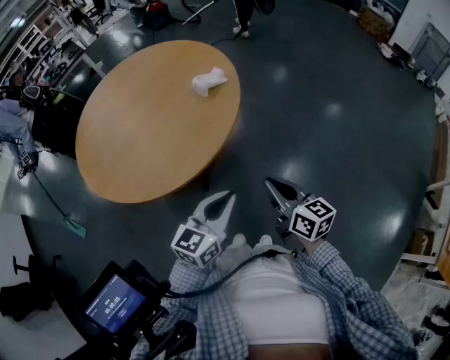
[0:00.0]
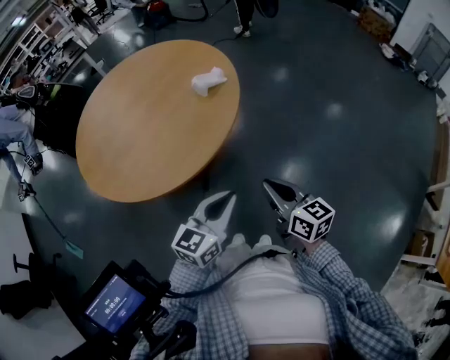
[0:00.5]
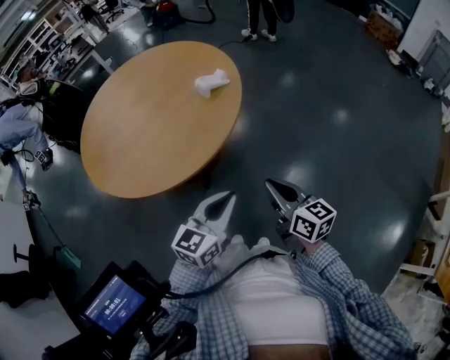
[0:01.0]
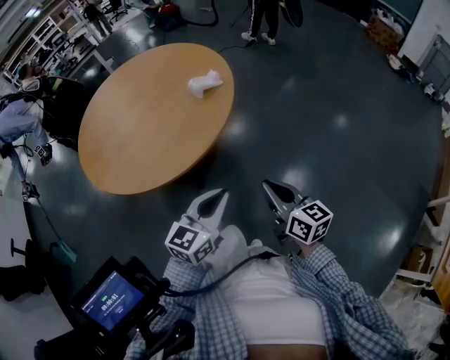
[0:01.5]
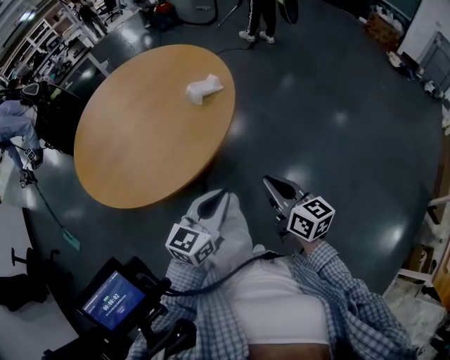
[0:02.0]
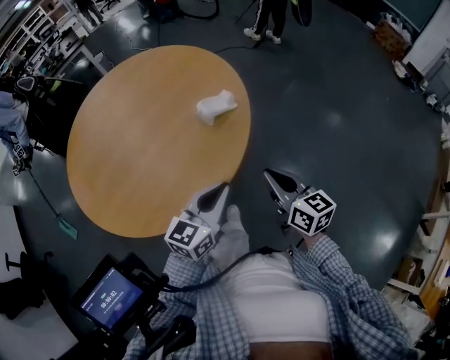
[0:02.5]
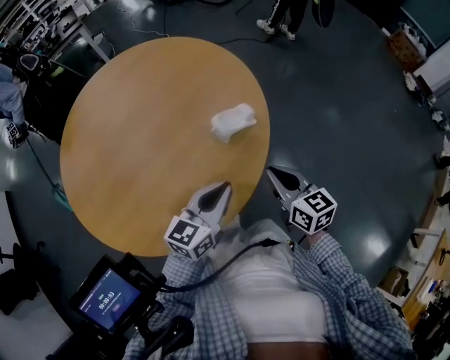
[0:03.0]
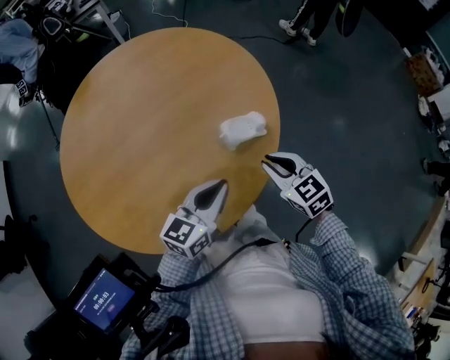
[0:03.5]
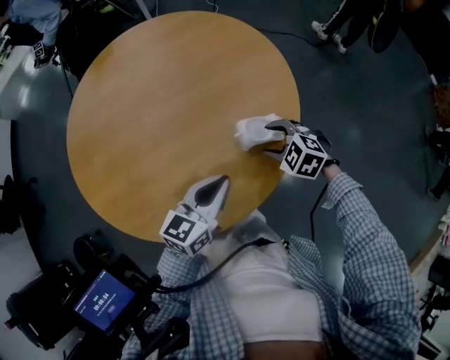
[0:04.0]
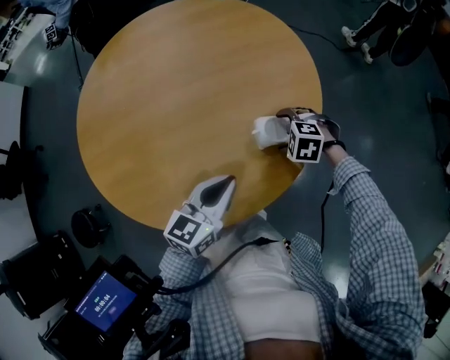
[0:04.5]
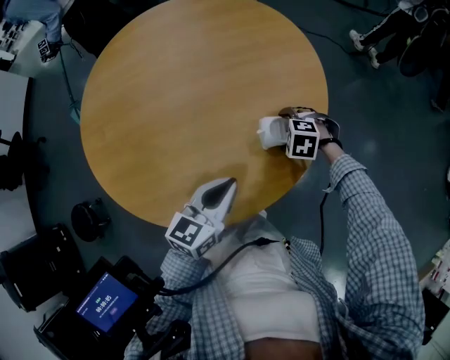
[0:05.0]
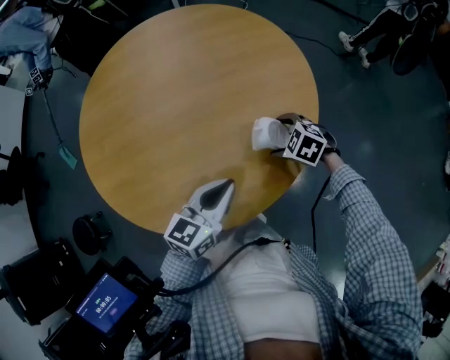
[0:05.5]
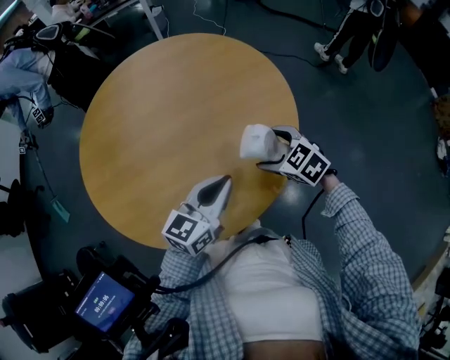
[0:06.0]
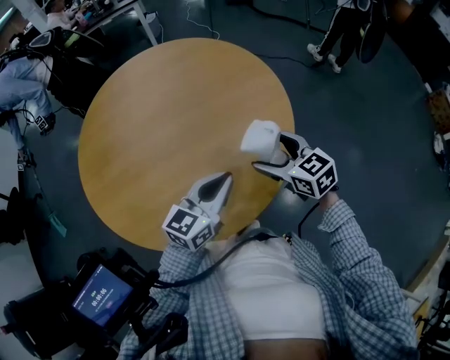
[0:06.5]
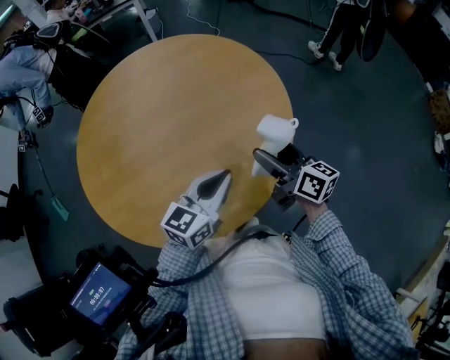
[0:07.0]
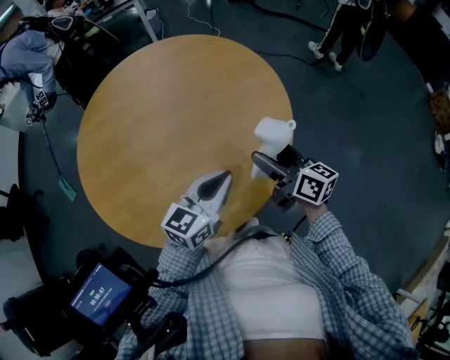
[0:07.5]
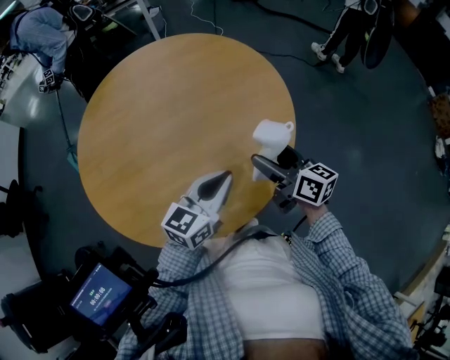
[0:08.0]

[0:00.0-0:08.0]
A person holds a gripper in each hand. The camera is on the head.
0:00.0 to 0:02.0: The two grippers go approximately 5 cm forward.
0:02.0 to 0:04.0: The left gripper ends up roughly 30 cm from where it was, and turns by roughly 20 degrees. The right gripper shifts by roughly 40 cm, tips its fingers downward by some 50 degrees, and opens up.
0:04.0 to 0:06.0: The right gripper moves about 10 cm downward and comes back, and opens up.
0:06.0 to 0:08.0: The right gripper travels upward by about 10 cm, and angles its fingers upward, by roughly 40 degrees.

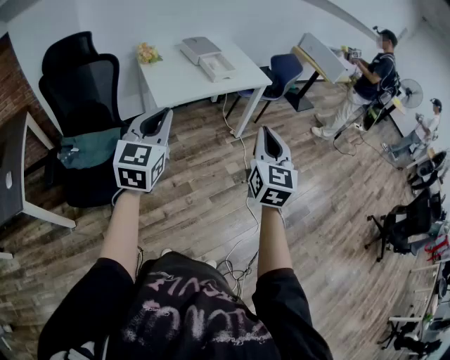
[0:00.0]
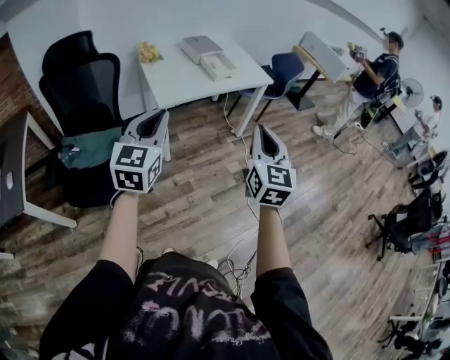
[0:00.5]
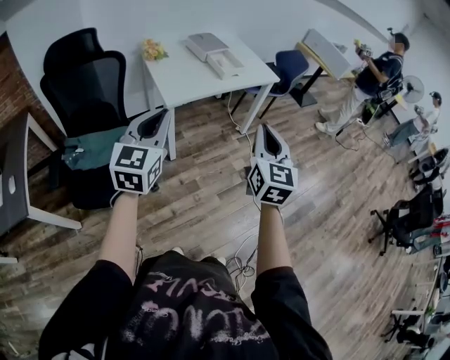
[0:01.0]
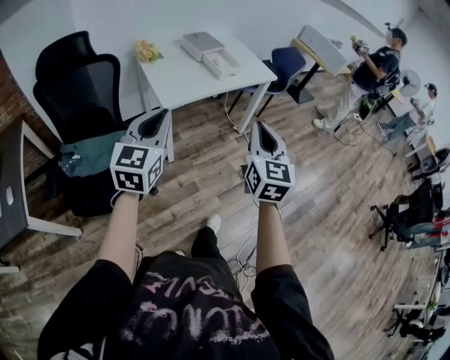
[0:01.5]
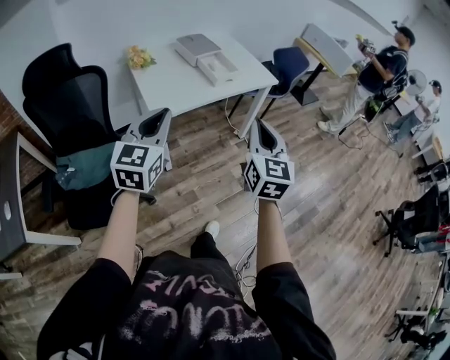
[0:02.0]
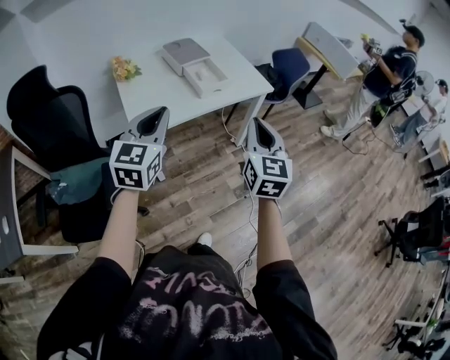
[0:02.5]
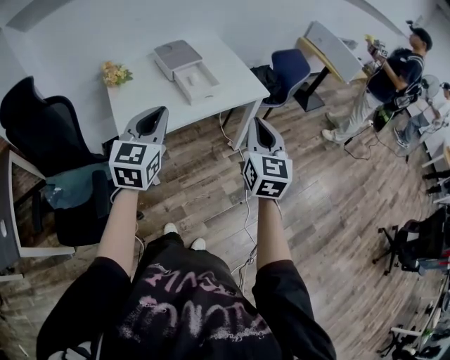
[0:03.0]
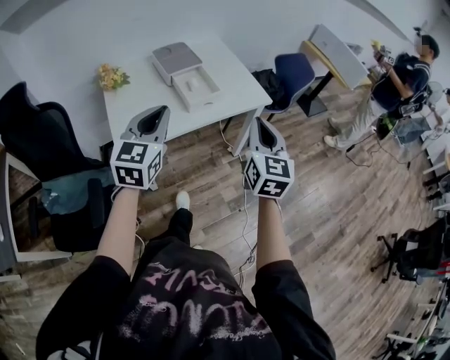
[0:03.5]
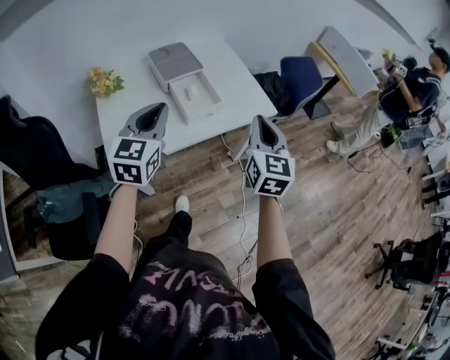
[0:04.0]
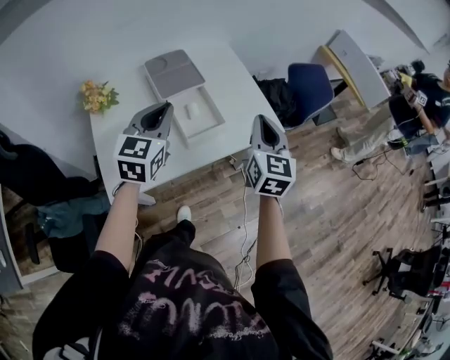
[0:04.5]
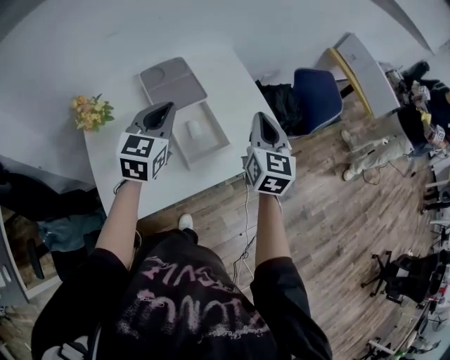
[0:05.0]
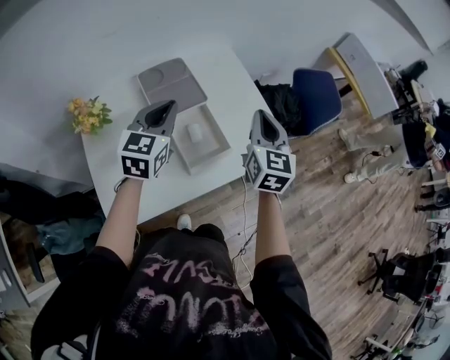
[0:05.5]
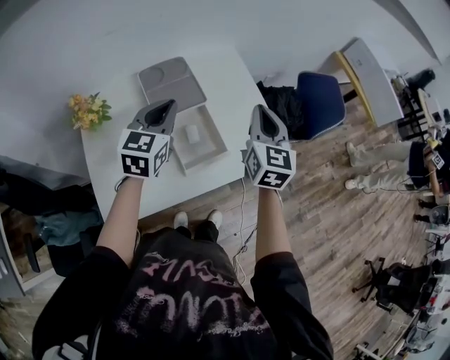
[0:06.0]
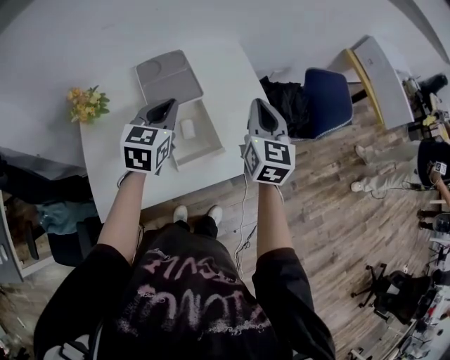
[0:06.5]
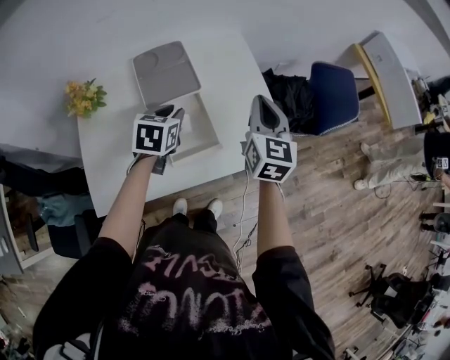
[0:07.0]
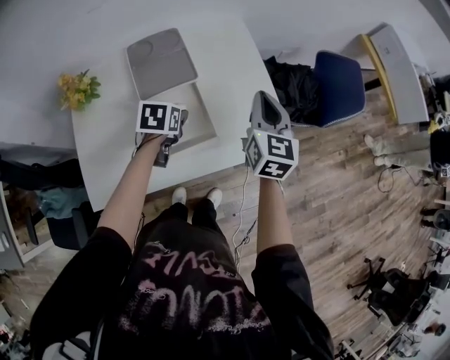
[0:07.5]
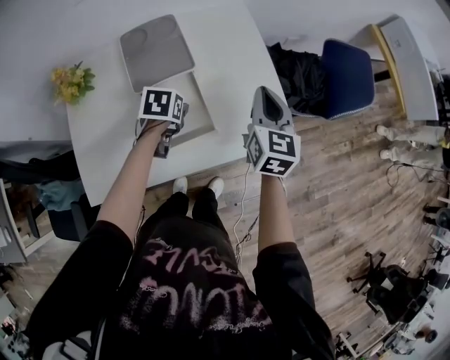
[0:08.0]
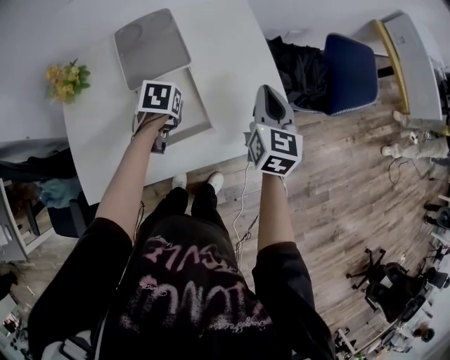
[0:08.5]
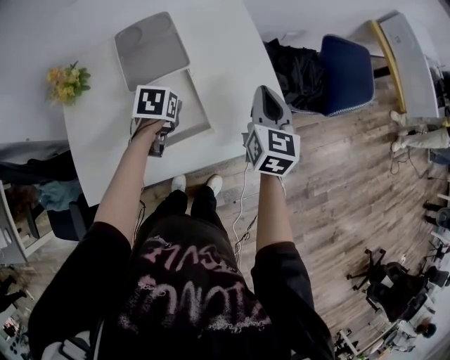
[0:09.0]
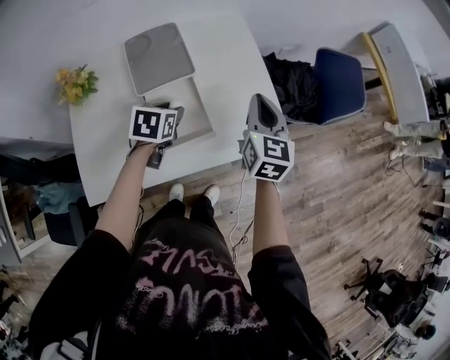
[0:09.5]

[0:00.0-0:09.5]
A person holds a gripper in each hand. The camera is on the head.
0:00.0 to 0:02.0: The grippers both shift forward by some 15 cm.
0:02.0 to 0:04.0: Both grippers move forward, some 35 cm.
0:04.0 to 0:05.5: The grippers both shift forward by about 25 cm.
0:05.5 to 0:07.5: The left gripper shifts some 20 cm downward, tips its fingers downward by some 40 degrees, and opens up. Meanwhile the right gripper is displaced forward and downward by roughly 10 cm.

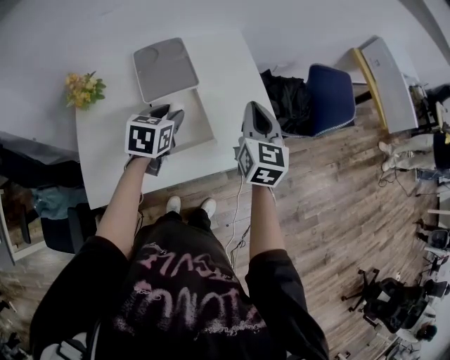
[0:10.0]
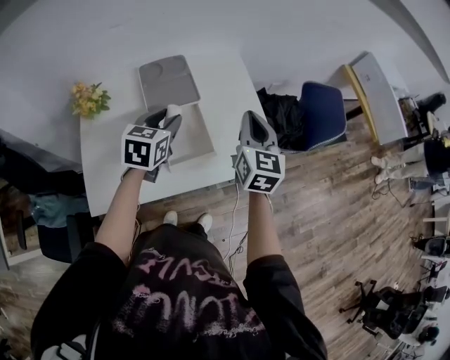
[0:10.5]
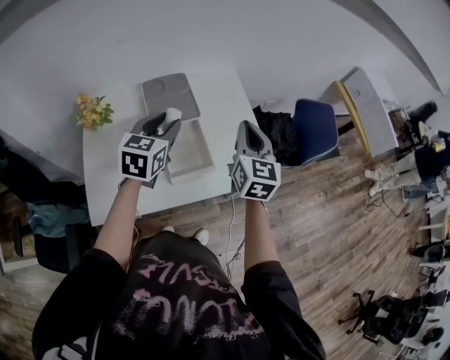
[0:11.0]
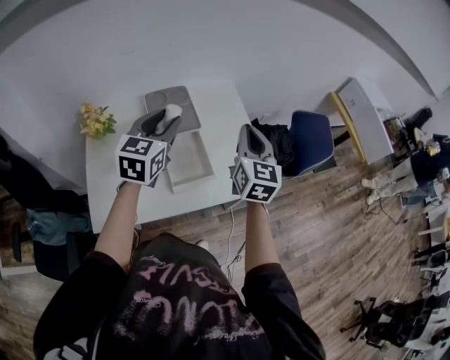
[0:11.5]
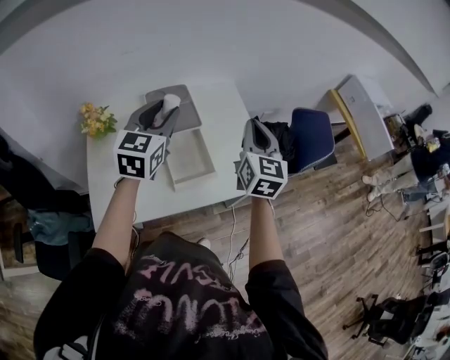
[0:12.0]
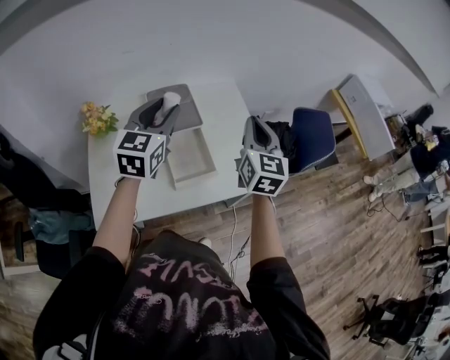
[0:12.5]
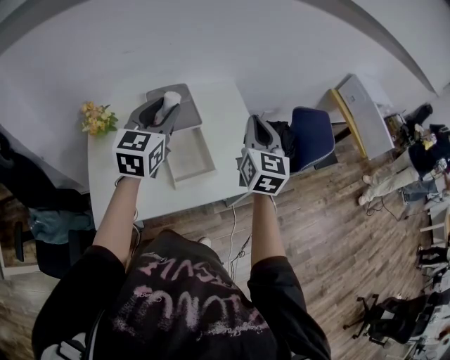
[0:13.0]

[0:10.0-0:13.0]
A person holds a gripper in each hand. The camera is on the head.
0:10.0 to 0:11.5: The left gripper goes approximately 20 cm upward, and turns by roughly 30 degrees; the right gripper shifts roughly 10 cm upward.
0:11.5 to 0:13.0: There are only small adjustments of the grippers.

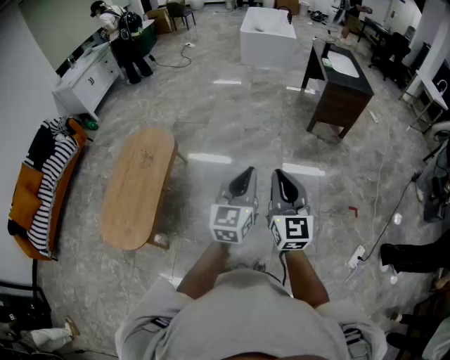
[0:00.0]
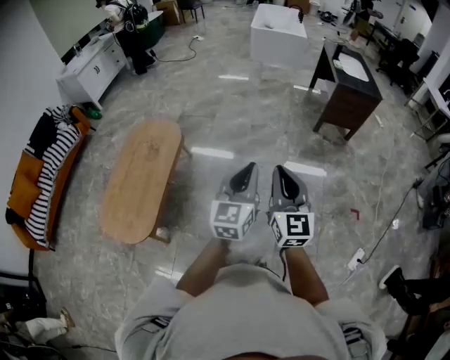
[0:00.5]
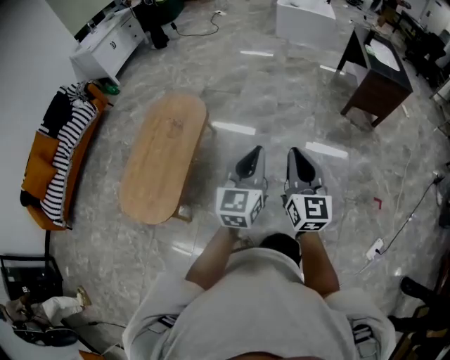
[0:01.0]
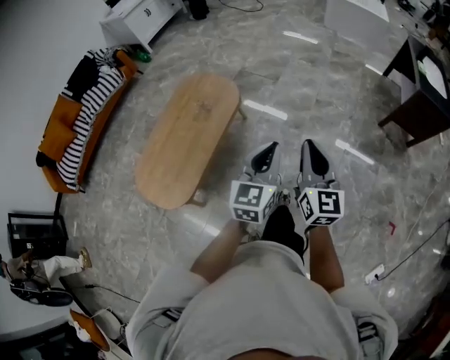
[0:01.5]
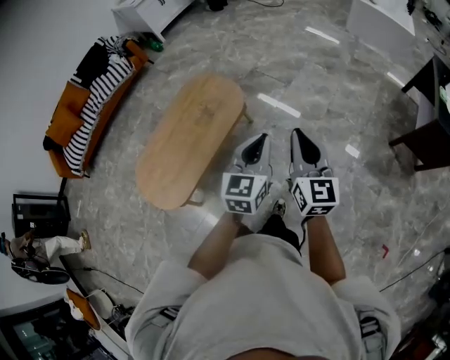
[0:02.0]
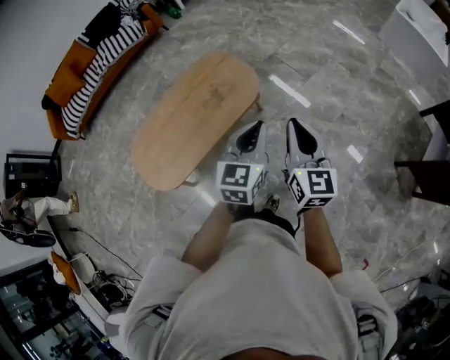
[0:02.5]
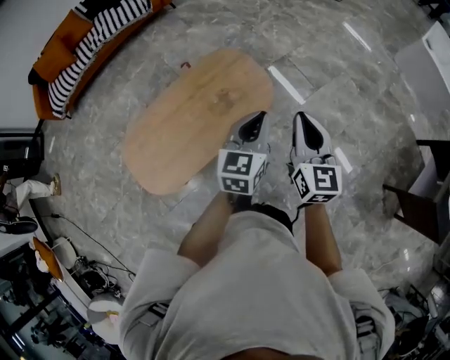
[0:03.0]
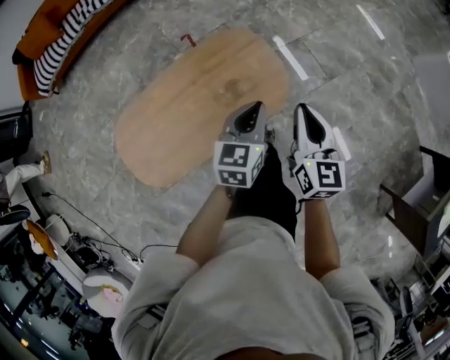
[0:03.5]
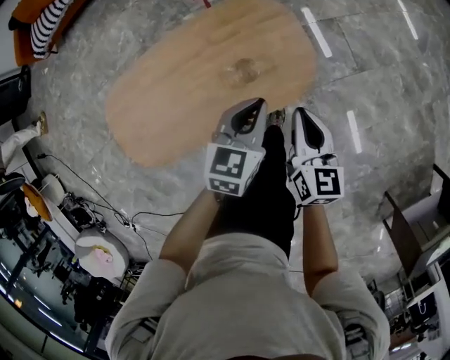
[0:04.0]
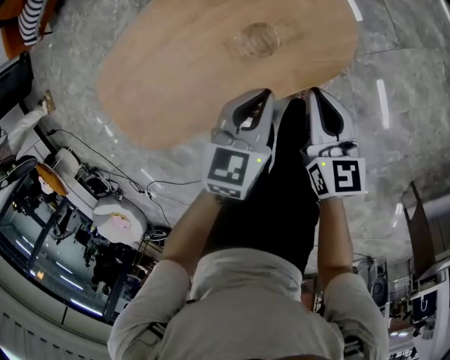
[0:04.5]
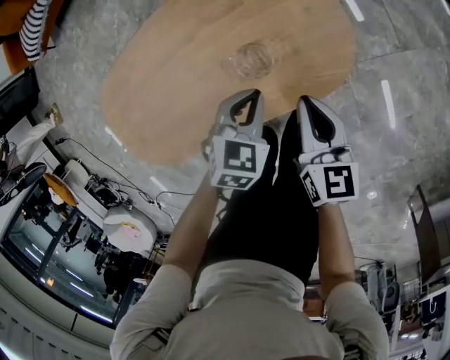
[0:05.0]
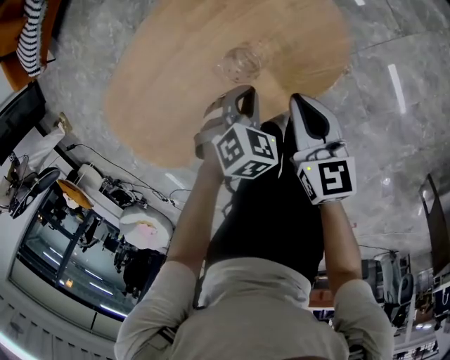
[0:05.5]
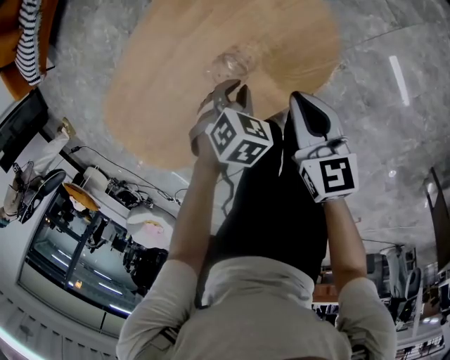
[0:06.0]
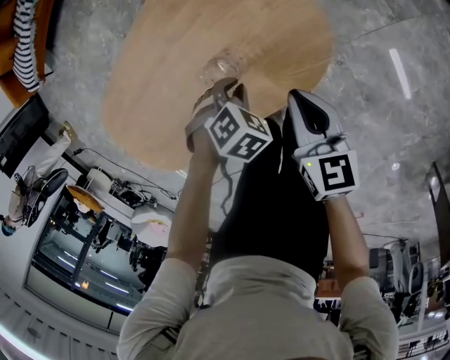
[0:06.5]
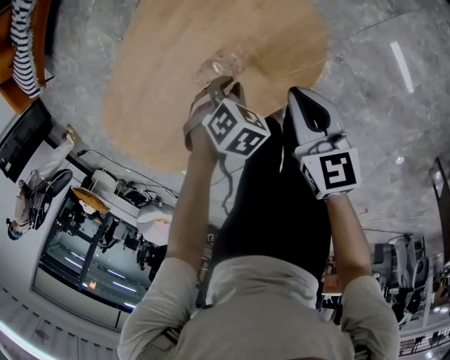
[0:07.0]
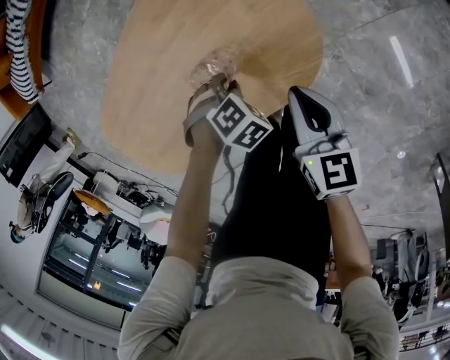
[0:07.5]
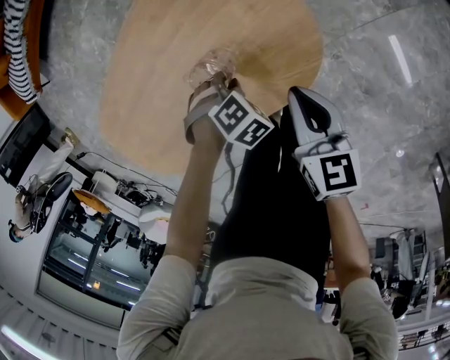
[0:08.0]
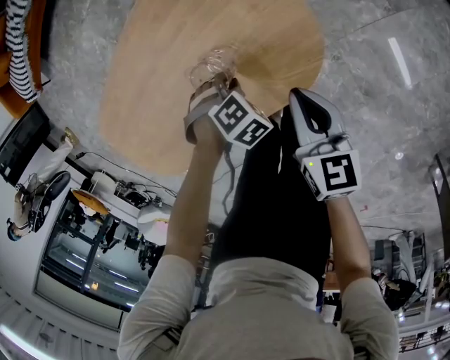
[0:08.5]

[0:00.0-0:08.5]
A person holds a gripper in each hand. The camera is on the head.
0:00.0 to 0:02.0: The left gripper changes place by approximately 35 cm, and turns by approximately 30 degrees. The right gripper changes place by roughly 40 cm, and swivels some 30 degrees.
0:02.0 to 0:04.0: The two grippers travel together, about 50 cm. The left gripper changes its angle by some 30 degrees. The right gripper turns by some 40 degrees.
0:04.0 to 0:06.5: The grippers both shift downward by approximately 25 cm. The left gripper angles its fingers downward, by roughly 50 degrees.
0:06.5 to 0:08.5: The left gripper changes place by some 5 cm.
